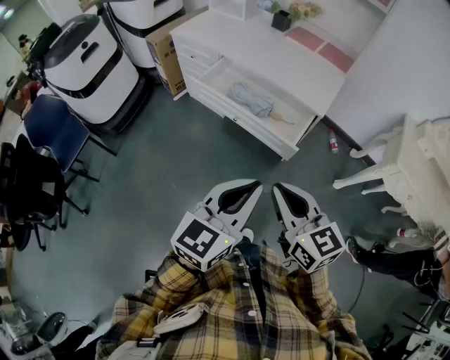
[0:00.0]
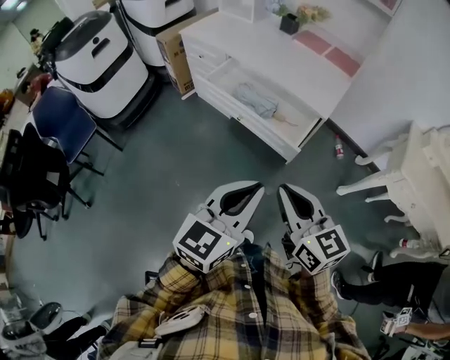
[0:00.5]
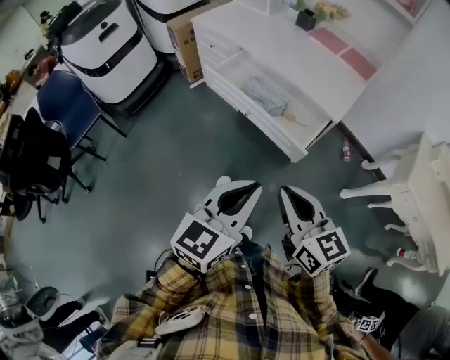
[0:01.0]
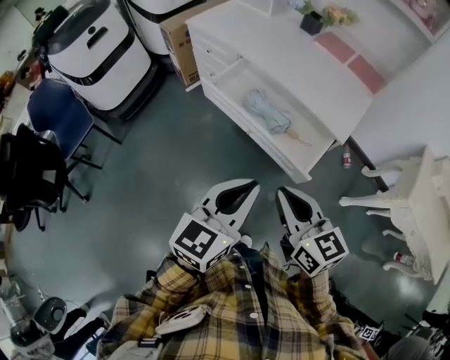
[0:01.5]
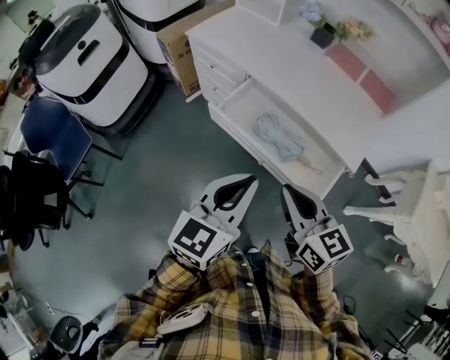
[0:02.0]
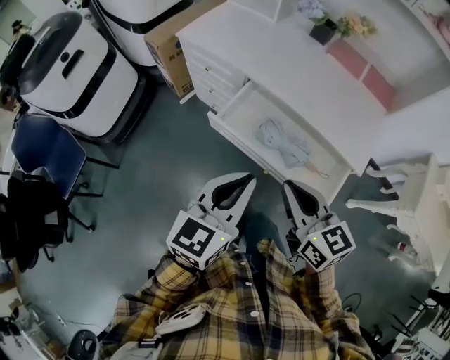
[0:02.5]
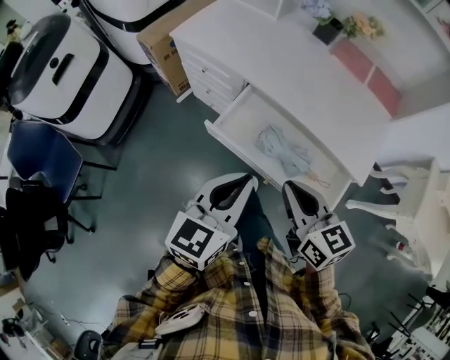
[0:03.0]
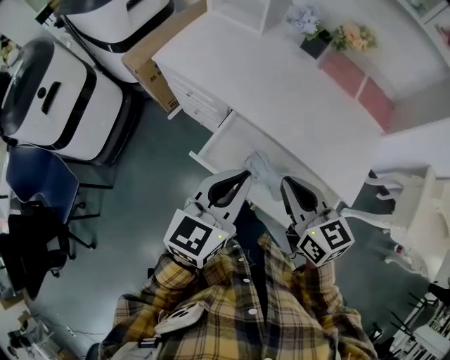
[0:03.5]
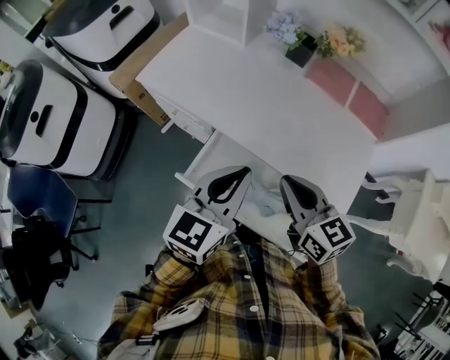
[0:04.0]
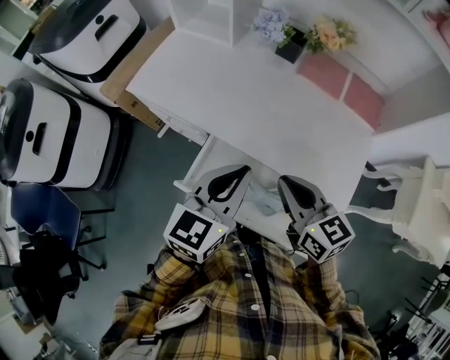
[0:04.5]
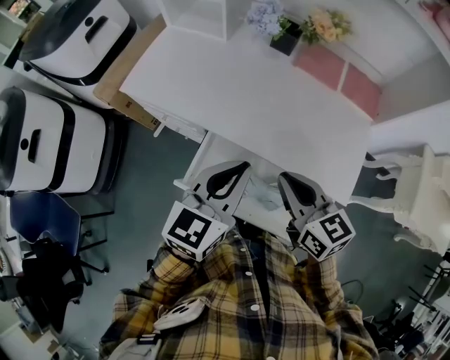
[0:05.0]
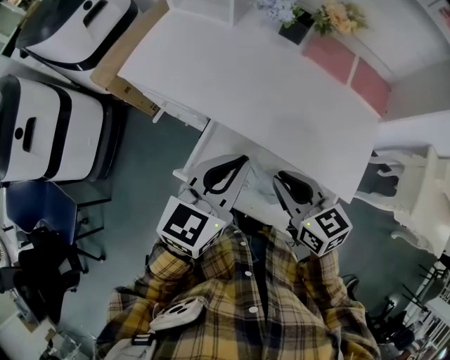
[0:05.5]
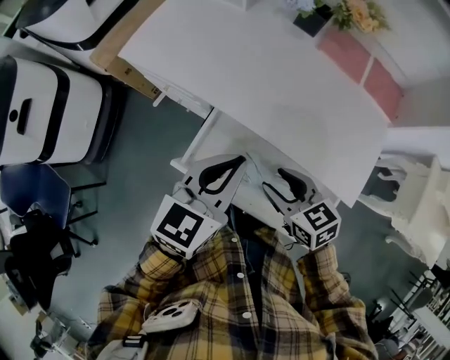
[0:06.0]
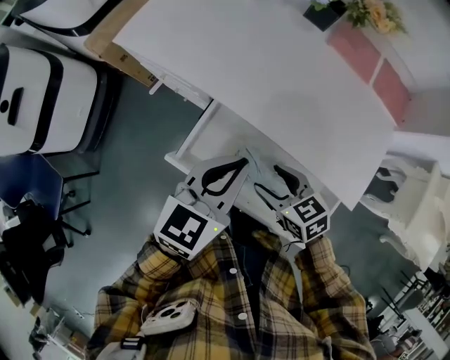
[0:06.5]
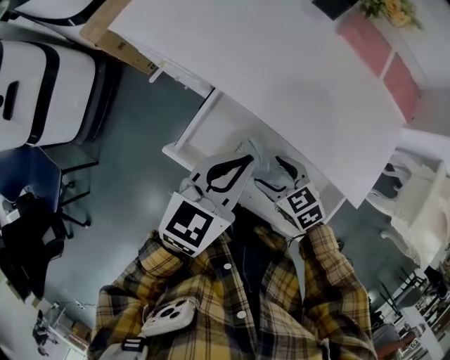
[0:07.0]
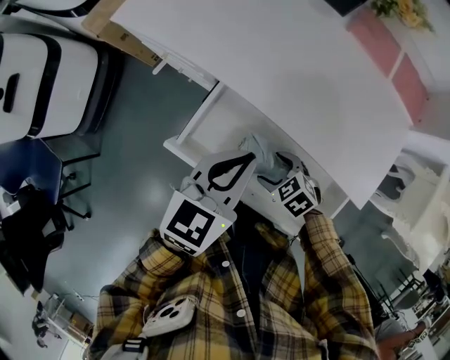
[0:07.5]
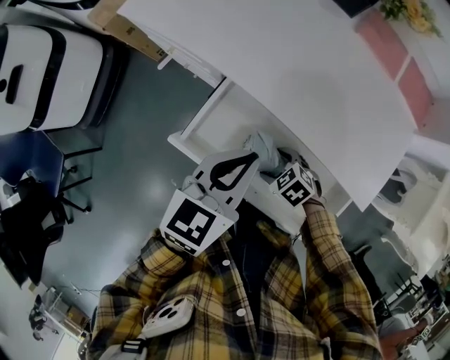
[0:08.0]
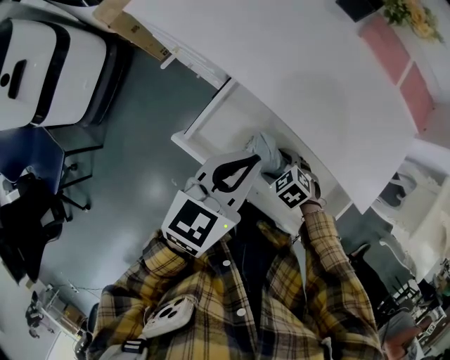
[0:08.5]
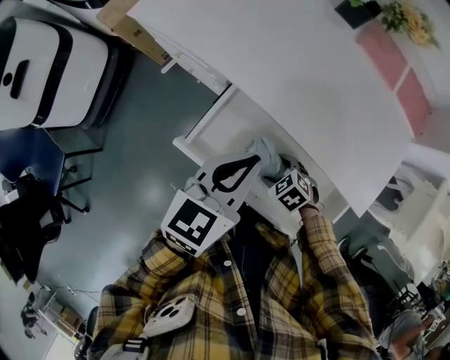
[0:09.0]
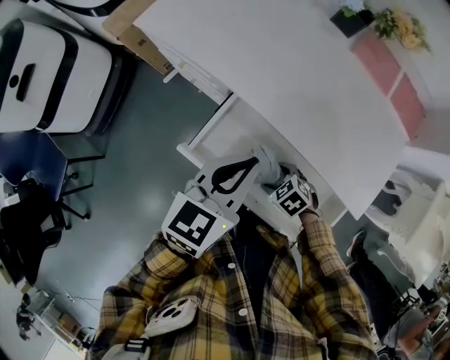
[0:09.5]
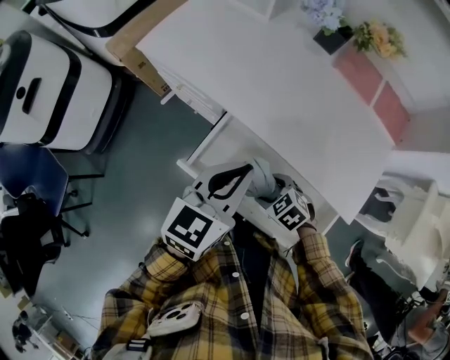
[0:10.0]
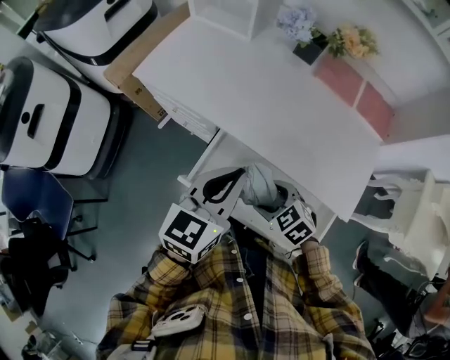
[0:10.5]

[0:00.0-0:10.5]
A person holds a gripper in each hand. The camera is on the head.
0:00.0 to 0:02.0: The left gripper travels forward and to the left by about 25 cm. Meanwhile the right gripper moves forward, roughly 25 cm.
0:02.0 to 0:04.0: The grippers both shift forward by about 25 cm.
0:04.0 to 0:06.5: The left gripper is displaced downward by about 10 cm; the right gripper moves downward, approximately 20 cm, turns by roughly 30 degrees, and opens its fingers.
0:06.5 to 0:08.5: The right gripper shifts about 15 cm downward, and changes its angle by some 40 degrees.
0:08.5 to 0:10.5: The left gripper shifts some 10 cm upward. Meanwhile the right gripper travels upward by some 15 cm.

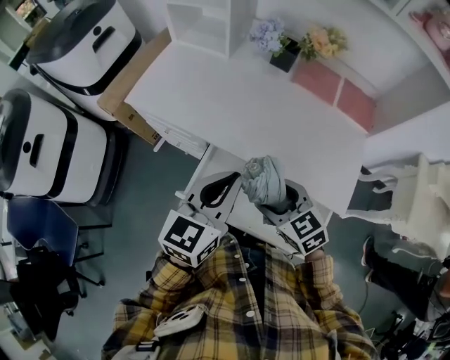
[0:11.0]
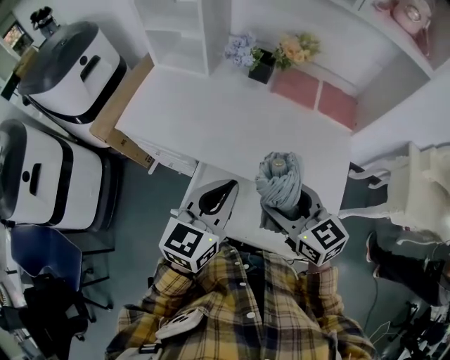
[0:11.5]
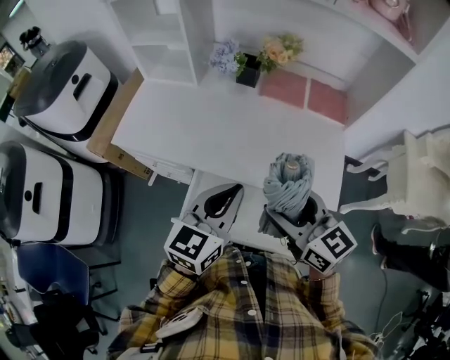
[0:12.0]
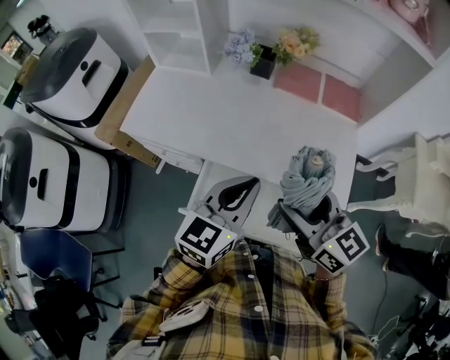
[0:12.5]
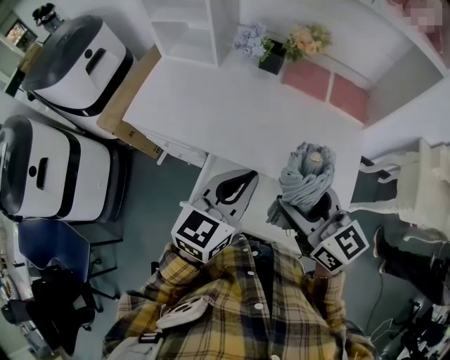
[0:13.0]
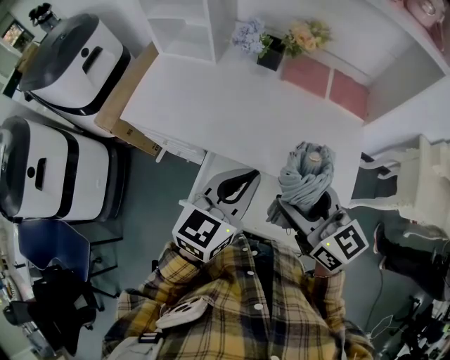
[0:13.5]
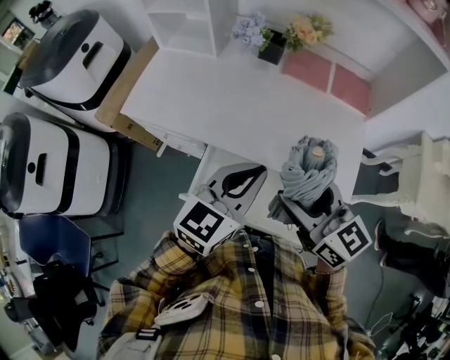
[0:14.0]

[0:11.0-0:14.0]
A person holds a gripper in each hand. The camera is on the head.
0:11.0 to 0:12.5: The left gripper travels to the right by roughly 5 cm. Meanwhile the right gripper moves upward, roughly 15 cm, and tips its fingers upward by about 30 degrees.
0:12.5 to 0:14.0: Both grippers stay about where they are.

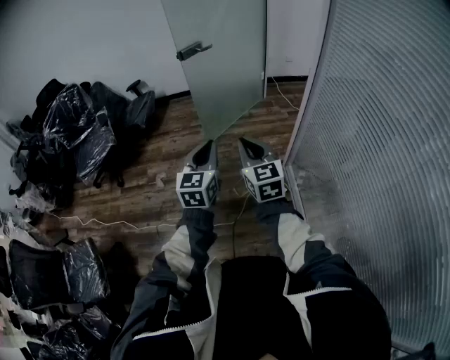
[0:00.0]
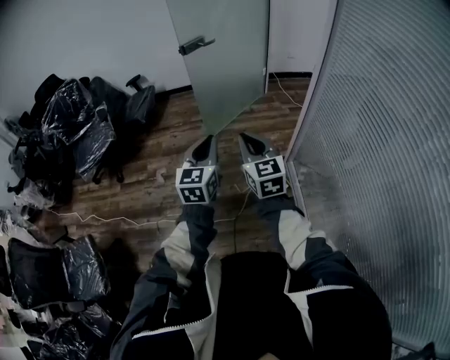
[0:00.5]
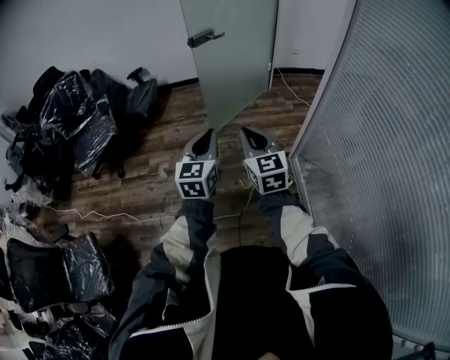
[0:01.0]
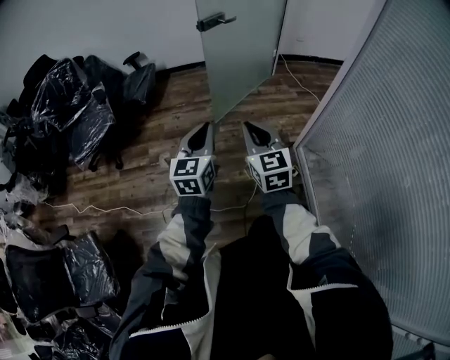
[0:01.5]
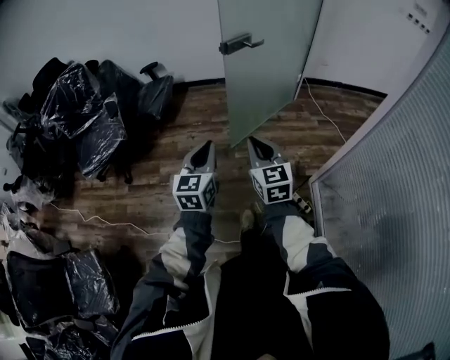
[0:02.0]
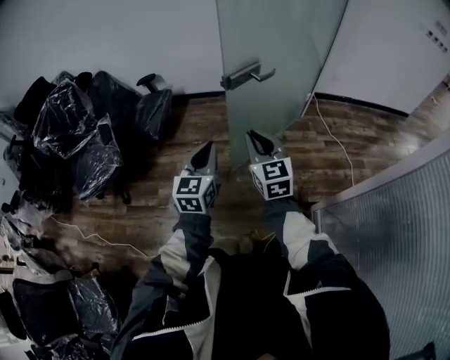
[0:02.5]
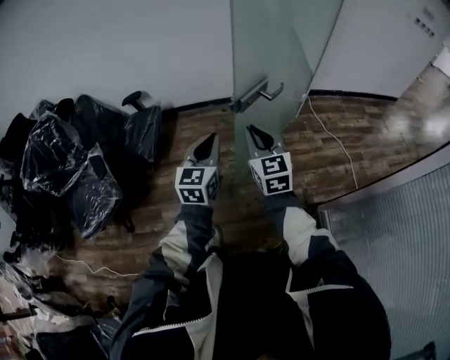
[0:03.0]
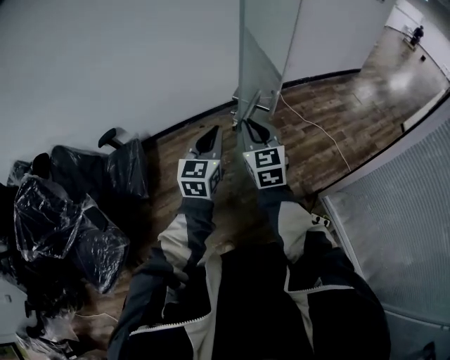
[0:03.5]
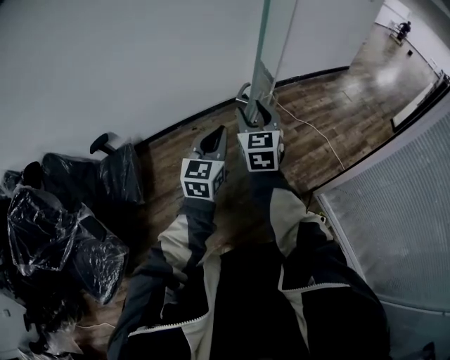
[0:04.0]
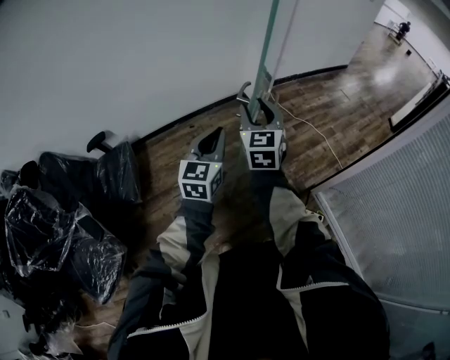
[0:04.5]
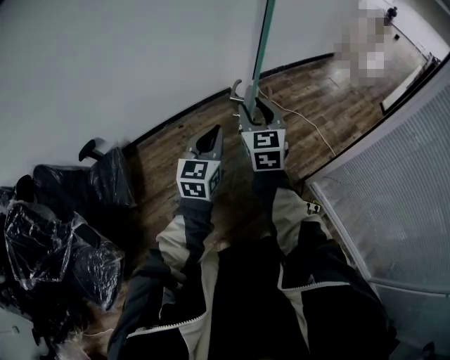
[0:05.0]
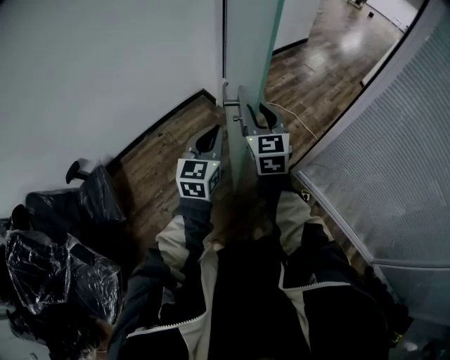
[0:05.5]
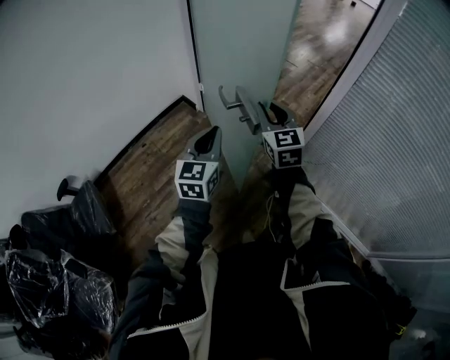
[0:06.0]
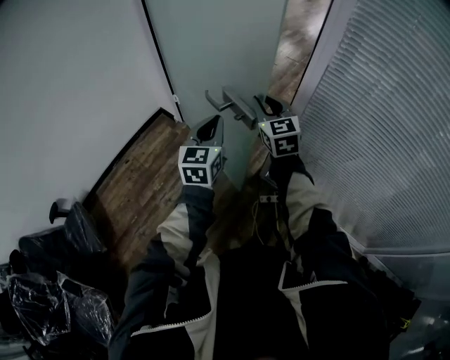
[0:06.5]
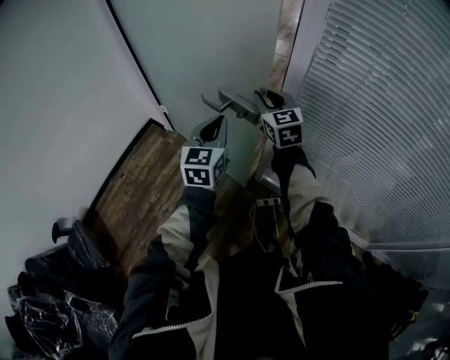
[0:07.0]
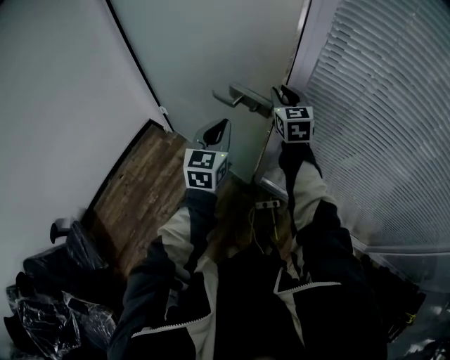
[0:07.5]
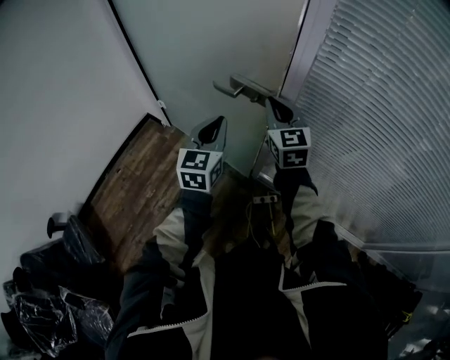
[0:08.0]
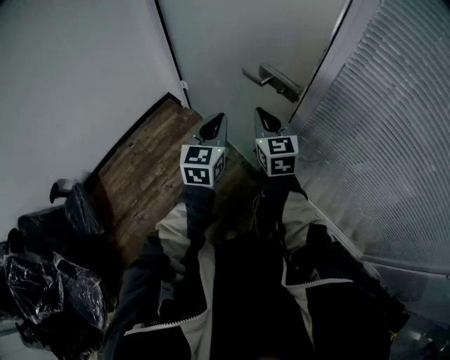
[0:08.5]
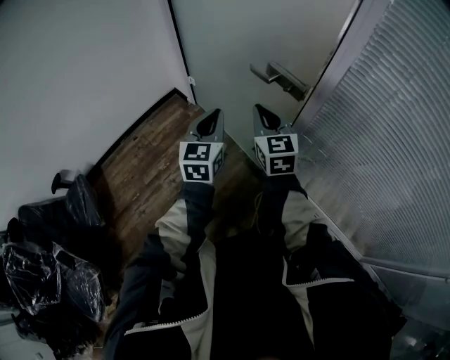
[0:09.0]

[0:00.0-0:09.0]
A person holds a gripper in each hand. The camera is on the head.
0:00.0 to 0:02.0: Both grippers travel together forward and to the left, about 30 cm.
0:02.0 to 0:04.5: Both grippers are carried some 50 cm. The right gripper swivels approximately 40 degrees, and opens; the left gripper swivels about 30 degrees.
0:04.5 to 0:07.0: Both grippers are carried to the right, approximately 50 cm. The left gripper turns by approximately 30 degrees; the right gripper closes its fingers.
0:07.0 to 0:09.0: The right gripper travels backward and to the left by approximately 15 cm. The left gripper goes some 10 cm to the left and backward.

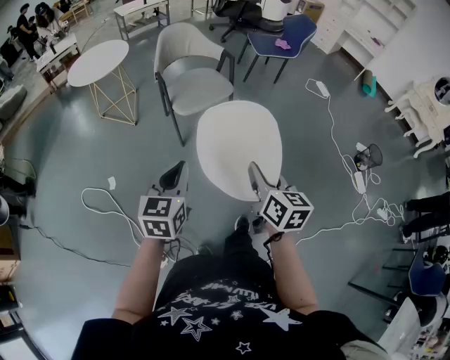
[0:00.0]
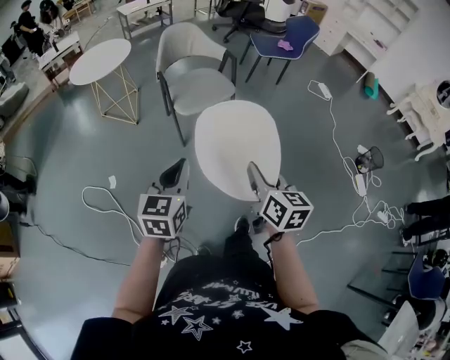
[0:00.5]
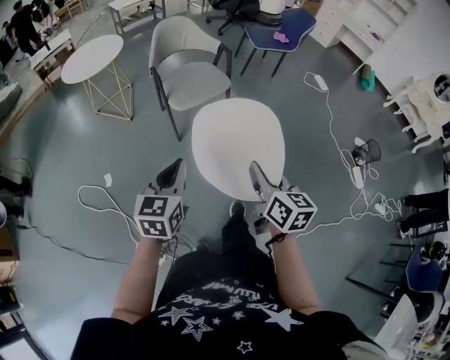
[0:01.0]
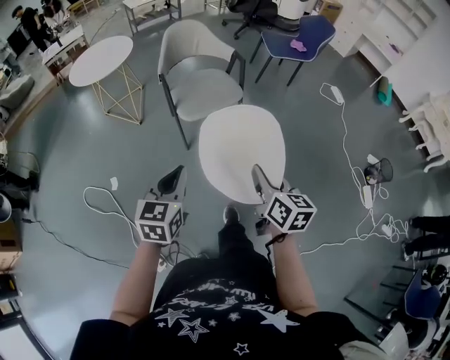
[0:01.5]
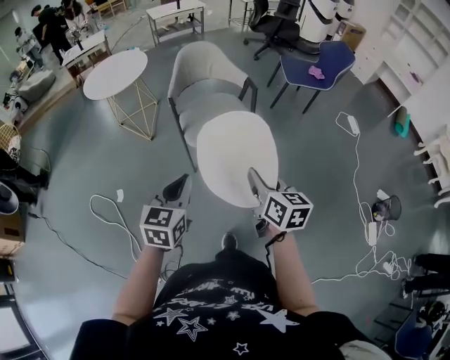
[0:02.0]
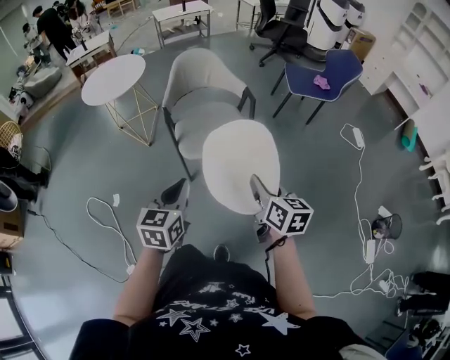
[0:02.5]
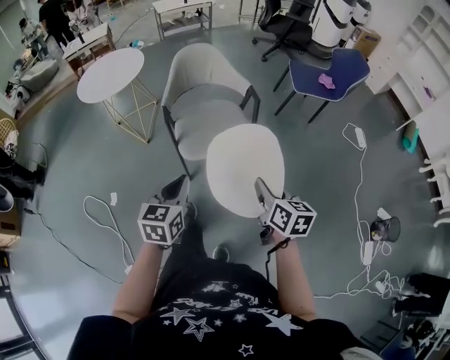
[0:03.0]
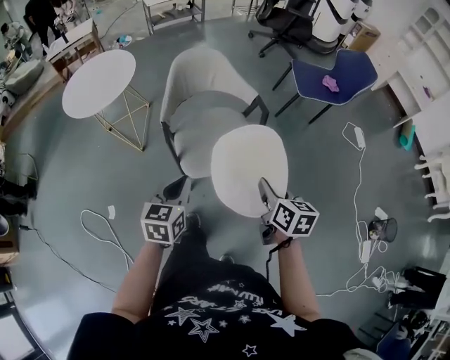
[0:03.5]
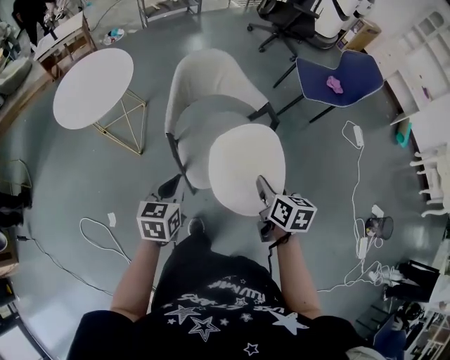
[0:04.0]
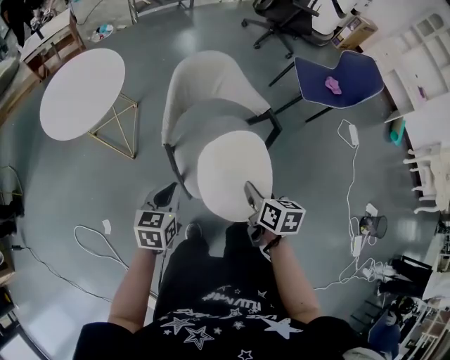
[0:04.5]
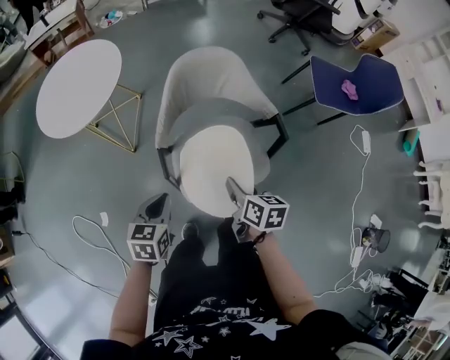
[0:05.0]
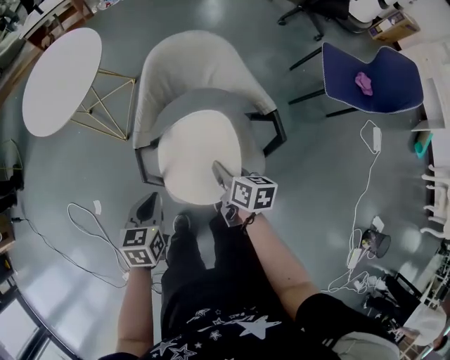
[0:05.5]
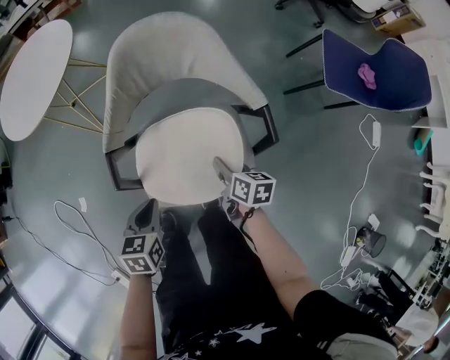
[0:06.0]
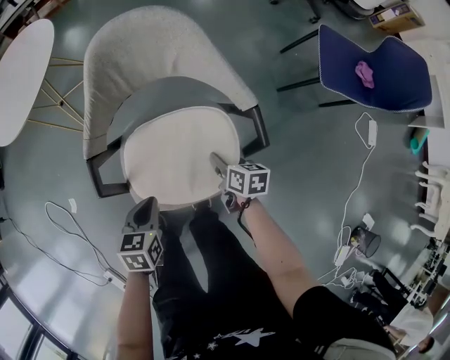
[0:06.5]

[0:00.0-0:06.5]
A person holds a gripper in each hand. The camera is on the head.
0:00.0 to 0:02.0: Both grippers travel together forward, approximately 20 cm.
0:02.0 to 0:04.5: The grippers both shift forward by some 35 cm. The right gripper swivels some 20 degrees.
0:04.5 to 0:06.5: The right gripper heads downward, forward and to the right, covering approximately 35 cm, and turns by some 20 degrees, while the left gripper is displaced downward and to the right by roughly 25 cm, and swivels about 20 degrees.
